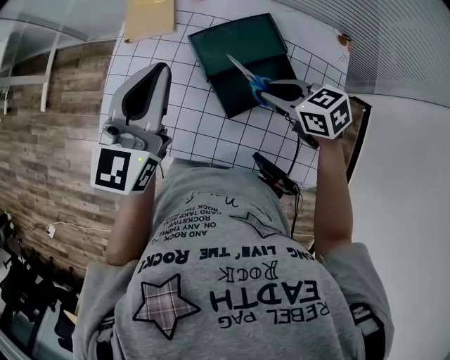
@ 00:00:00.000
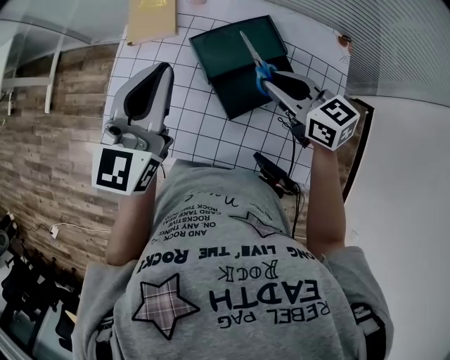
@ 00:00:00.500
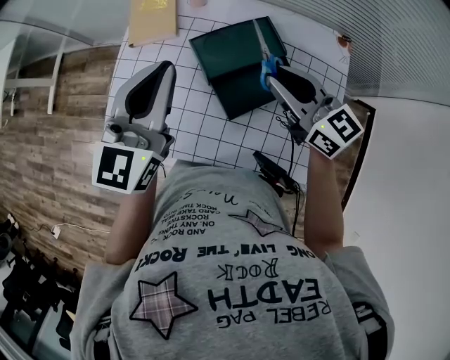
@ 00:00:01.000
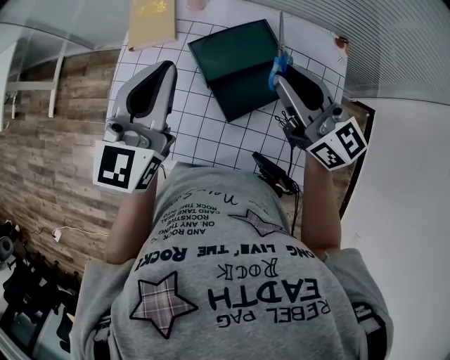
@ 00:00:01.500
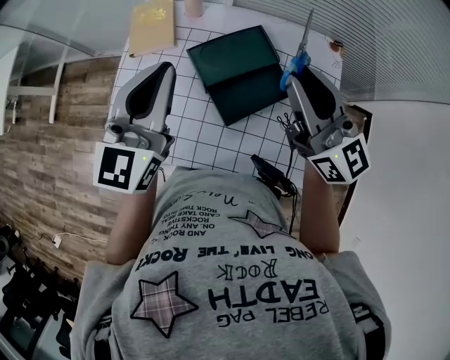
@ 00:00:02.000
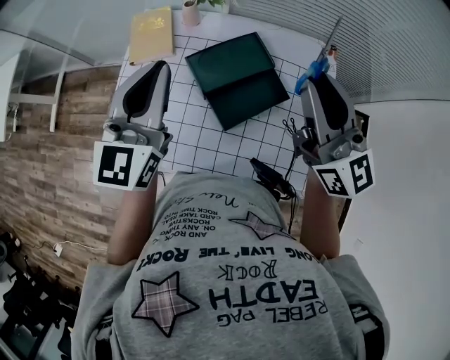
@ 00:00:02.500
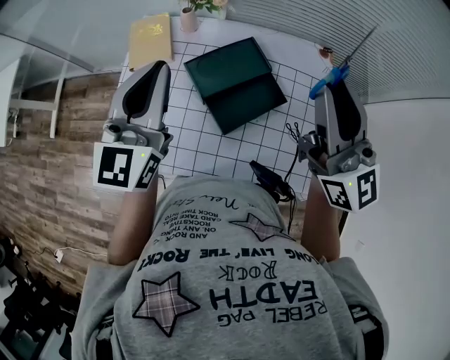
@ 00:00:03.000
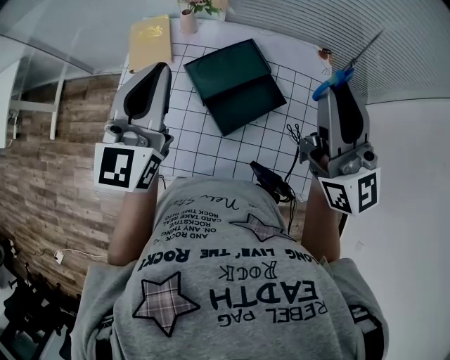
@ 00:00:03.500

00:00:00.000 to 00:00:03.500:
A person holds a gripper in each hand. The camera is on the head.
00:00:00.000 to 00:00:02.000: The right gripper goes approximately 20 cm upward, and tilts its fingers about 50 degrees upward.
00:00:02.000 to 00:00:03.500: The right gripper travels upward by roughly 10 cm.

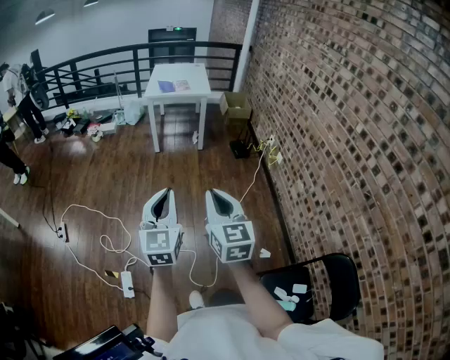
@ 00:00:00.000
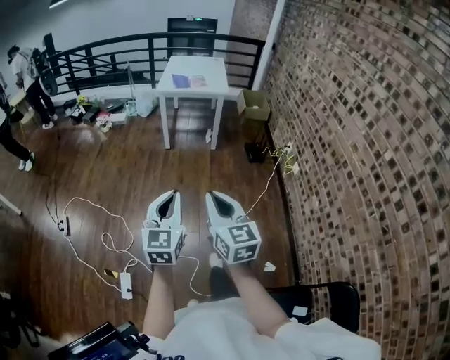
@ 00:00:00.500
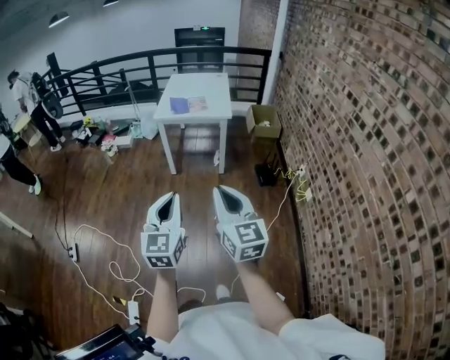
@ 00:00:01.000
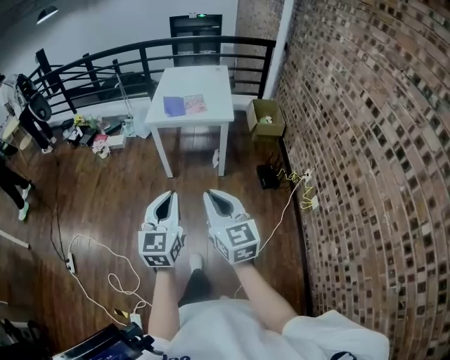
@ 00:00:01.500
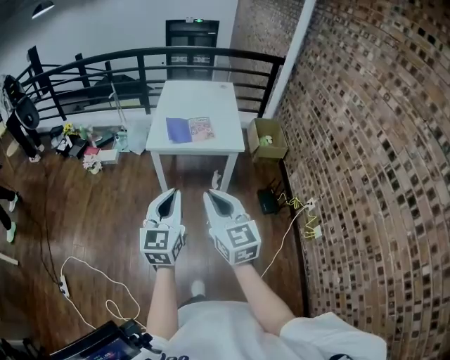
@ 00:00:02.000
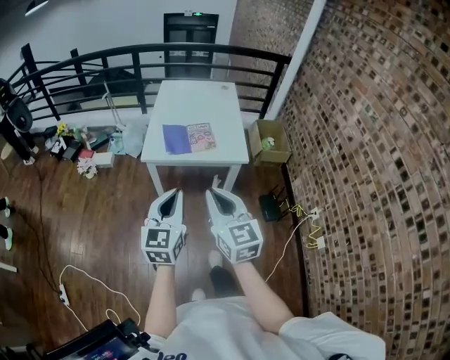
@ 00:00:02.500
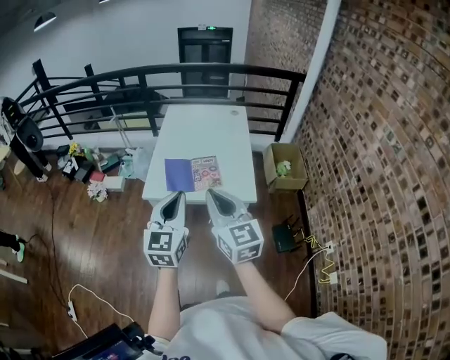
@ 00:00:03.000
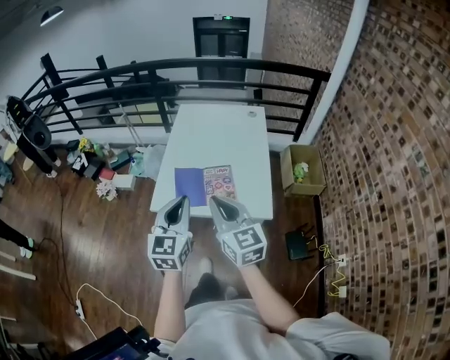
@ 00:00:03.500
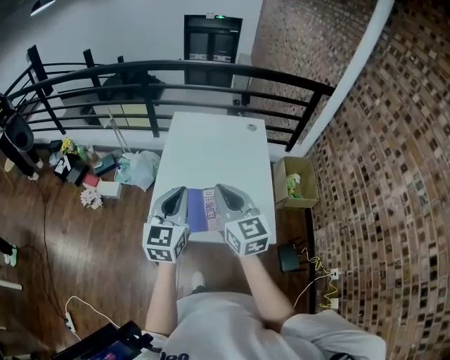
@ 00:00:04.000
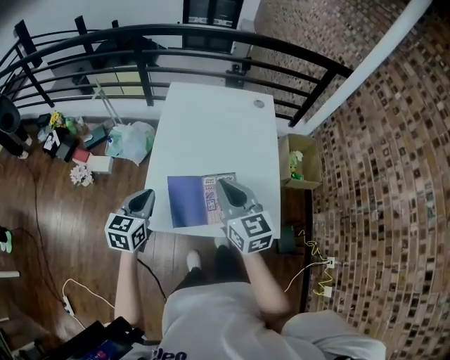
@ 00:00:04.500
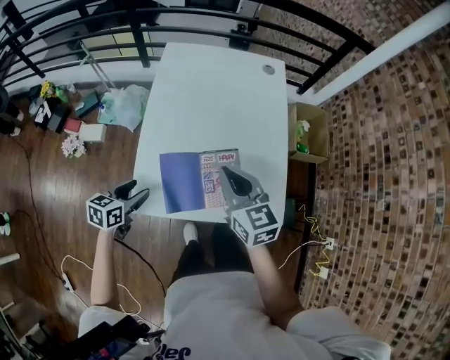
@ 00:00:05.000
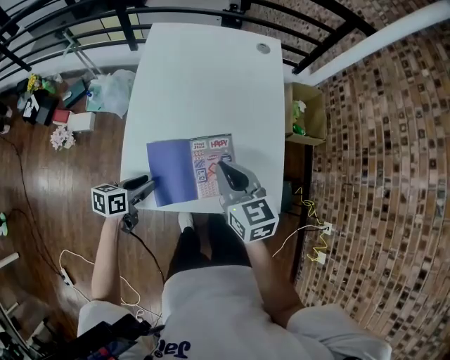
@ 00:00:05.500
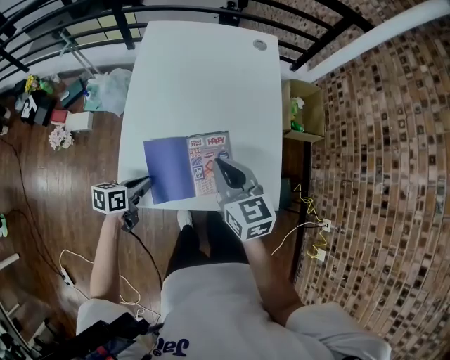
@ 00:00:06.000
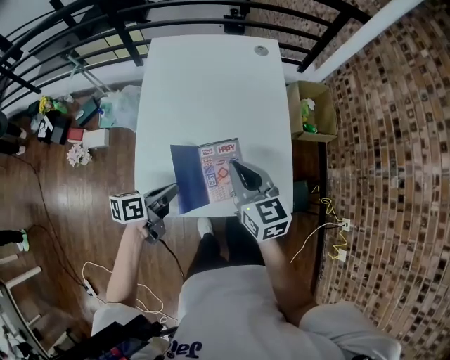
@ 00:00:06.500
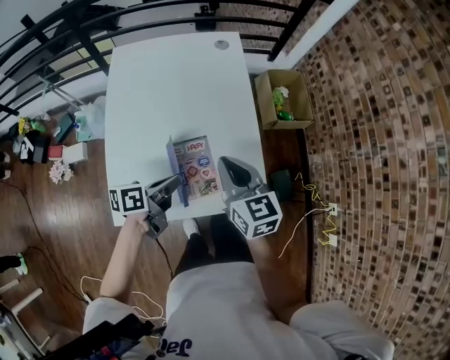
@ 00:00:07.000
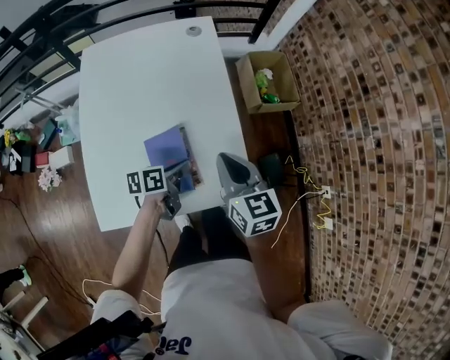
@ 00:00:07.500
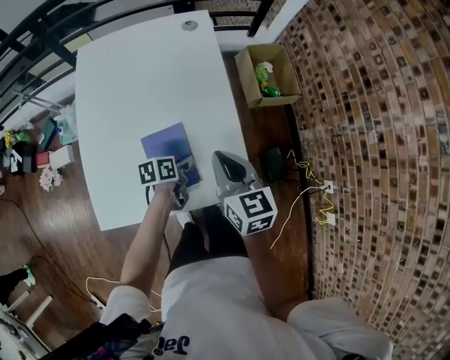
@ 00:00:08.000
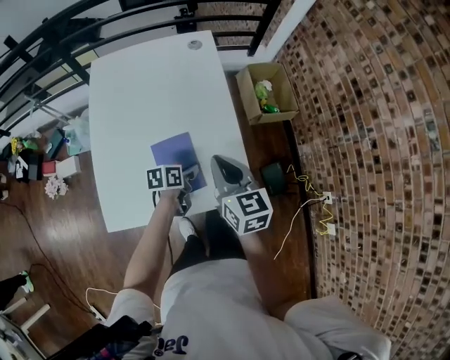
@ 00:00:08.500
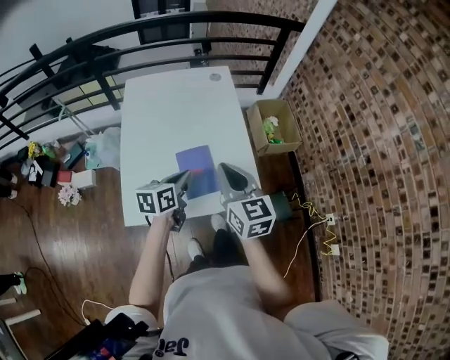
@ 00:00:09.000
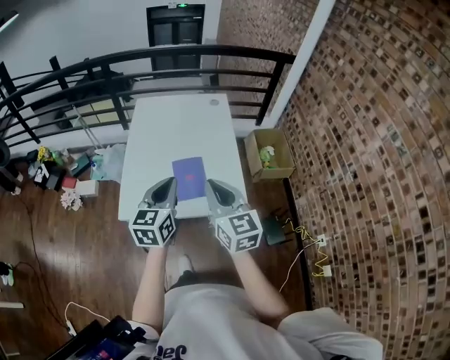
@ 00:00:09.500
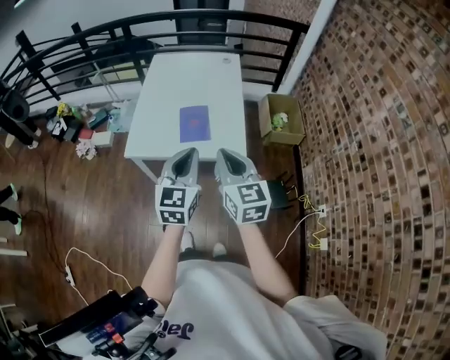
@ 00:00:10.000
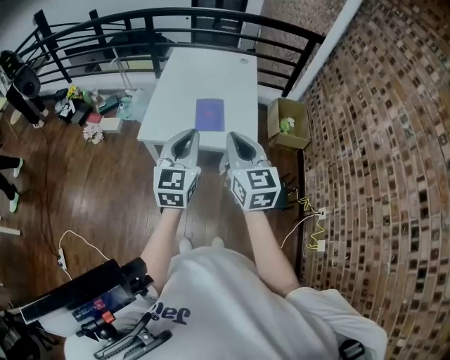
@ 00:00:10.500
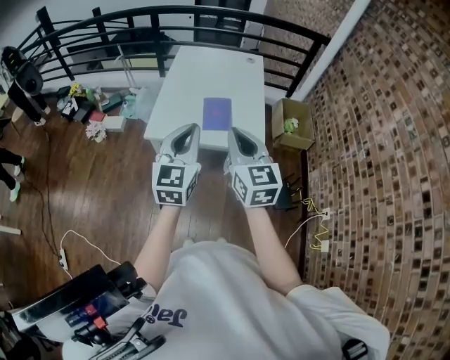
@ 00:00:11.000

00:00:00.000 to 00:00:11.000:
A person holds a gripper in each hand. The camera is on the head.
00:00:00.000 to 00:00:02.000: The two grippers travel together, forward, approximately 70 cm.
00:00:02.000 to 00:00:03.500: Both grippers are carried forward, some 40 cm.
00:00:03.500 to 00:00:05.500: The left gripper goes roughly 40 cm downward, forward and to the left, rotates about 60 degrees, and opens; the right gripper shifts about 30 cm forward and downward, and turns by about 20 degrees.
00:00:05.500 to 00:00:07.500: The right gripper shifts some 15 cm to the right. The left gripper heads to the right and forward, covering roughly 30 cm, and closes.
00:00:07.500 to 00:00:09.000: The left gripper heads upward, backward and to the left, covering approximately 15 cm, and turns by approximately 30 degrees, while the right gripper travels upward and backward by approximately 15 cm.
00:00:09.000 to 00:00:11.000: The right gripper is displaced backward by about 25 cm, while the left gripper goes some 35 cm backward and upward, and rotates about 50 degrees.

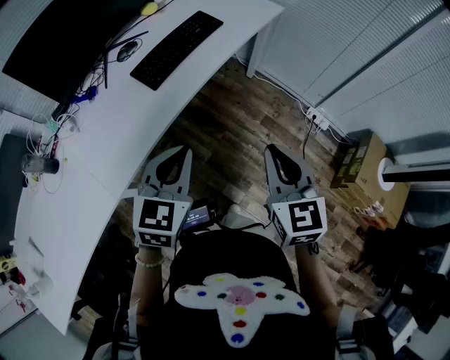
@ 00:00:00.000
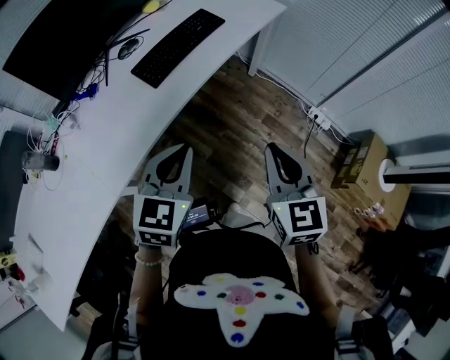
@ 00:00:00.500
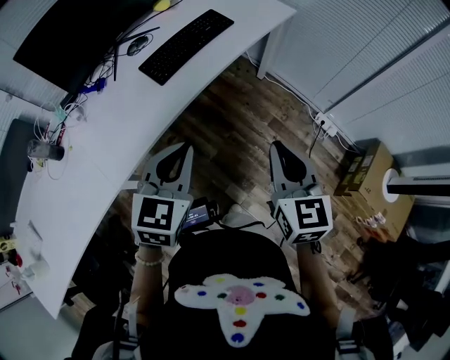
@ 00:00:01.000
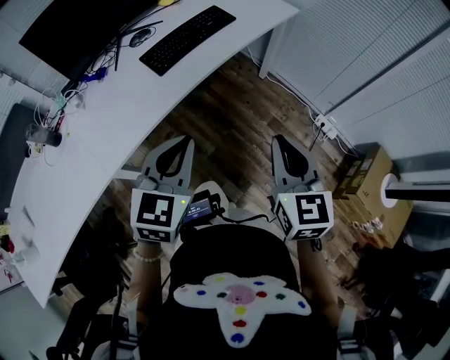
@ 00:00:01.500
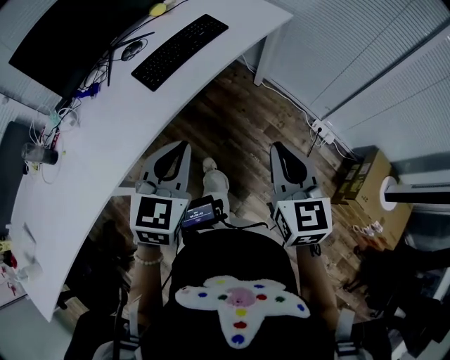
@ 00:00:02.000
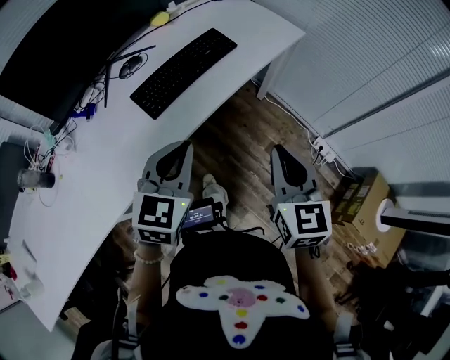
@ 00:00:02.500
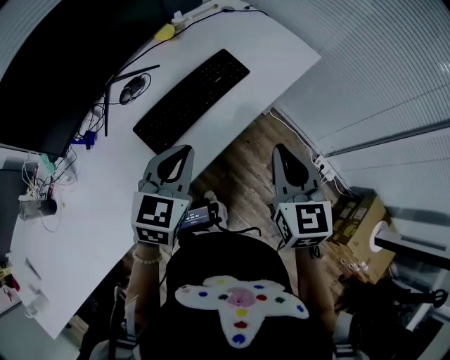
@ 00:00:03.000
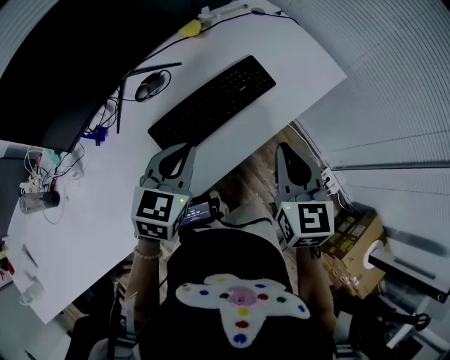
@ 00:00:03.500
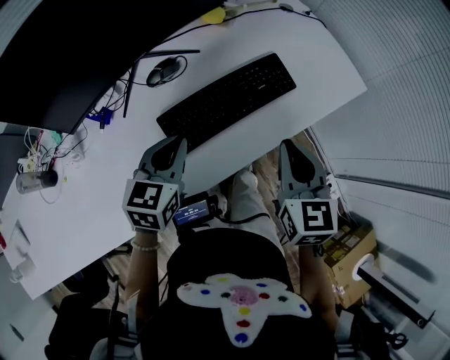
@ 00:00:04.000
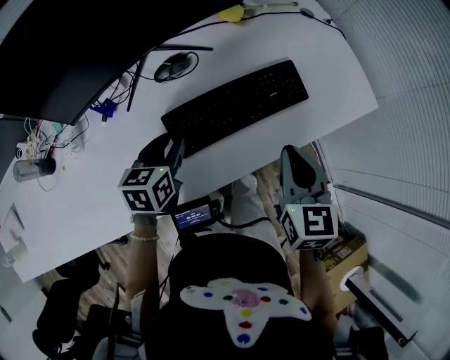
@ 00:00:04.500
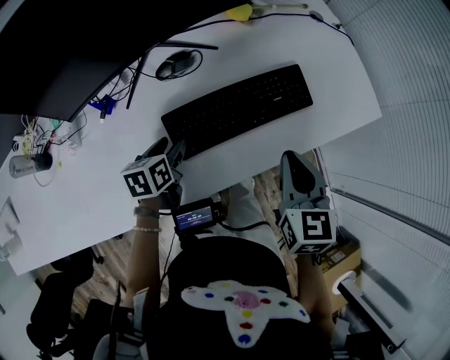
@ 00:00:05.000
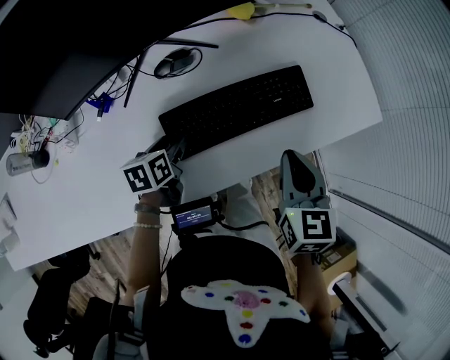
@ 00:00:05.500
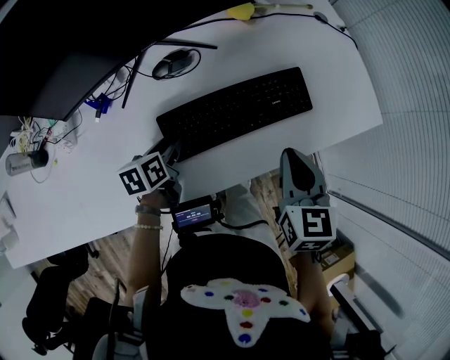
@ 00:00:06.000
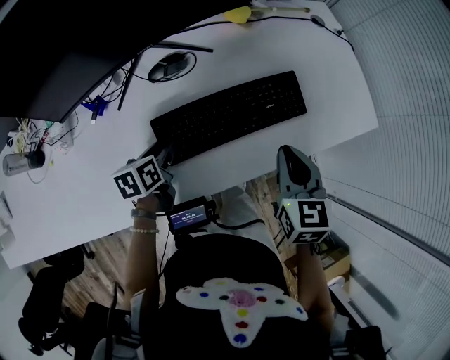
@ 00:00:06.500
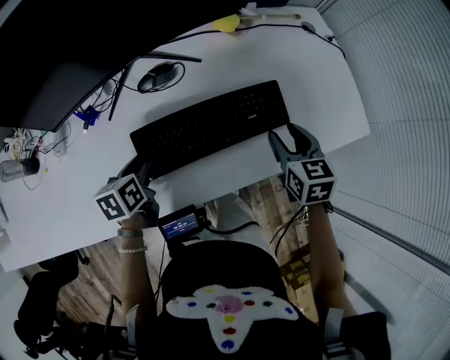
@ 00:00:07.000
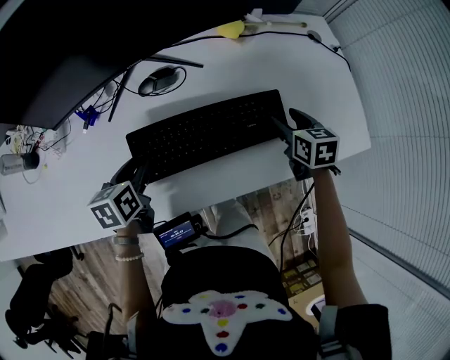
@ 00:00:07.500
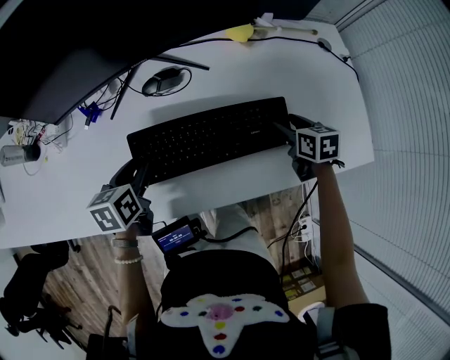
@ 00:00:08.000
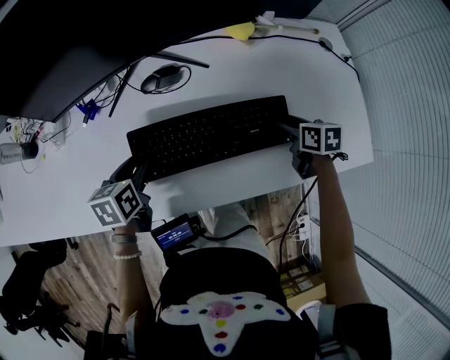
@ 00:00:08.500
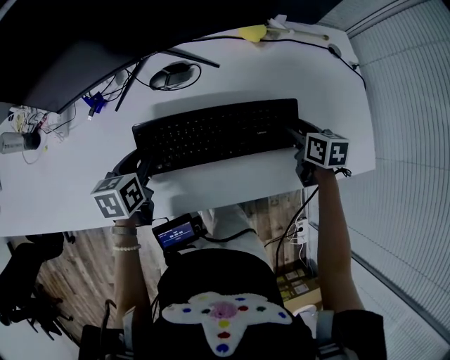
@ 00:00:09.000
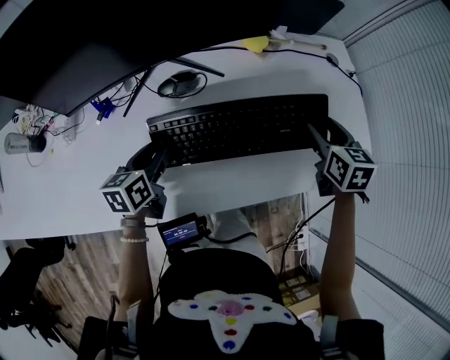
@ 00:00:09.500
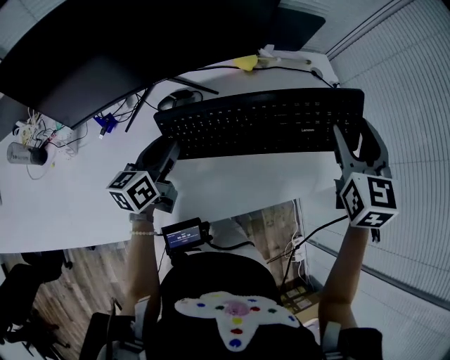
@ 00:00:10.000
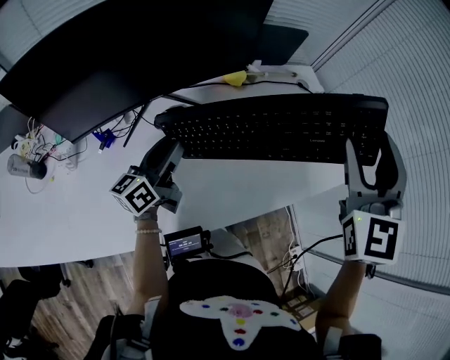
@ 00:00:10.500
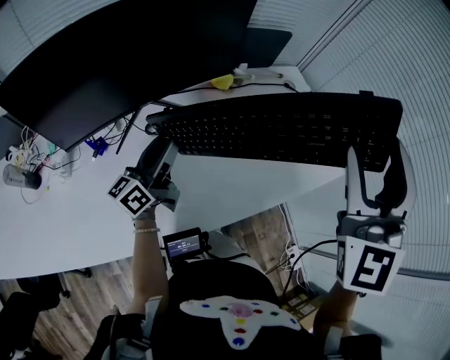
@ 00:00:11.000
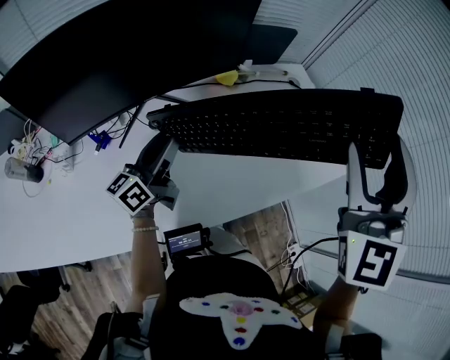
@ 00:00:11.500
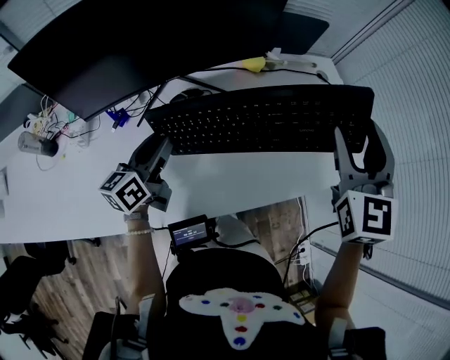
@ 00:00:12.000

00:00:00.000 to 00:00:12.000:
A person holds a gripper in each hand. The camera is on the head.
00:00:00.000 to 00:00:02.000: The right gripper ends up some 5 cm from where it was.
00:00:02.000 to 00:00:04.000: The left gripper shifts roughly 35 cm forward and to the left, and turns by some 20 degrees. The right gripper moves forward, approximately 35 cm.
00:00:04.000 to 00:00:06.000: The left gripper moves downward, roughly 15 cm, rolls counterclockwise, seen from behind, by roughly 40 degrees, and opens. The right gripper heads forward, covering about 5 cm.
00:00:06.000 to 00:00:08.000: The left gripper shifts approximately 5 cm upward. Meanwhile the right gripper ends up roughly 25 cm from where it was, swivels about 30 degrees, and opens.
00:00:08.000 to 00:00:10.000: The left gripper changes place by roughly 10 cm, and points its fingers roughly 40 degrees further upward, while the right gripper heads upward, covering about 30 cm, and rotates some 50 degrees.
00:00:10.000 to 00:00:12.000: The left gripper ends up some 5 cm from where it was. The right gripper reaches about 15 cm upward, then returns.
